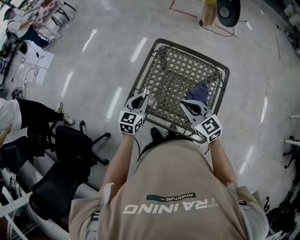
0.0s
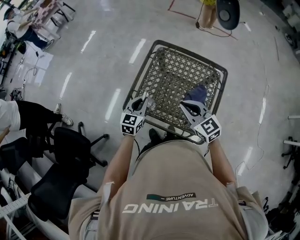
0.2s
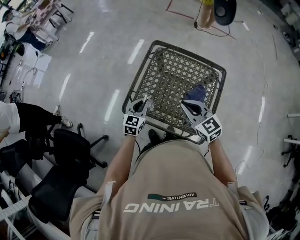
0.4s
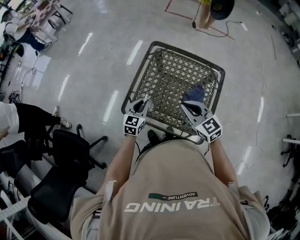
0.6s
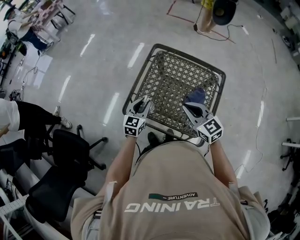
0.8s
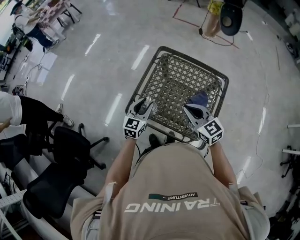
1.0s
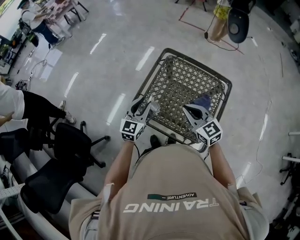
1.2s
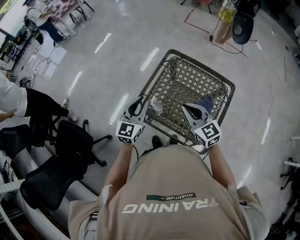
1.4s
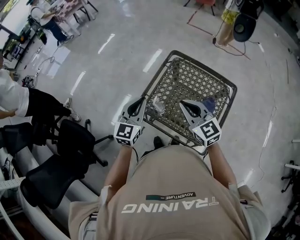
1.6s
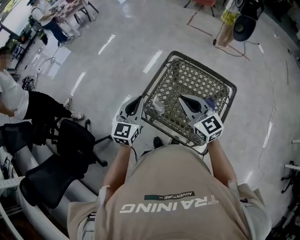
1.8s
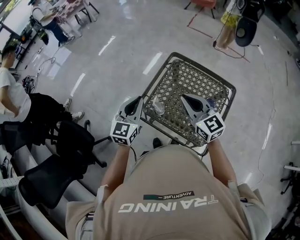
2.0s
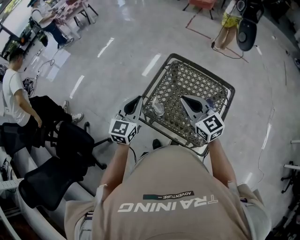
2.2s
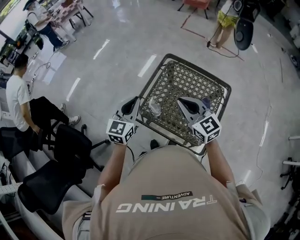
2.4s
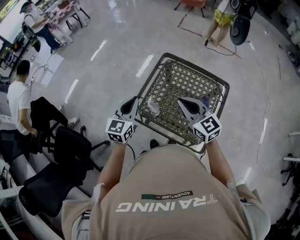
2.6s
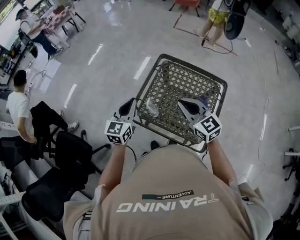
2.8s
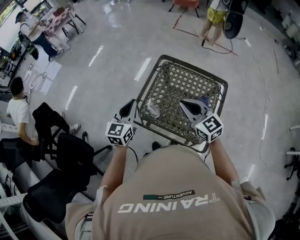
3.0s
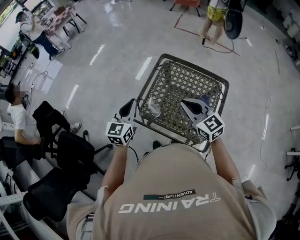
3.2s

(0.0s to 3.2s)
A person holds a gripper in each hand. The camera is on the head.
0.0s - 1.6s: The right gripper travels upward by roughly 5 cm, while the left gripper heads upward, covering approximately 10 cm, and opens and closes again.
1.6s - 3.2s: The grippers make only small movements.

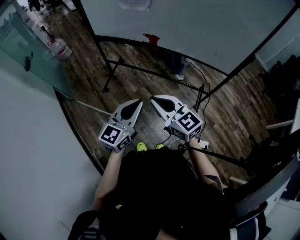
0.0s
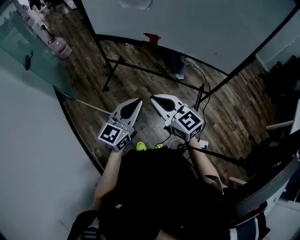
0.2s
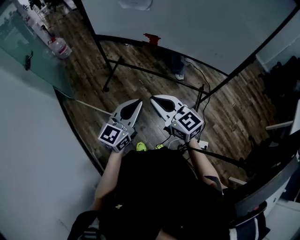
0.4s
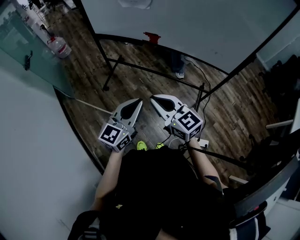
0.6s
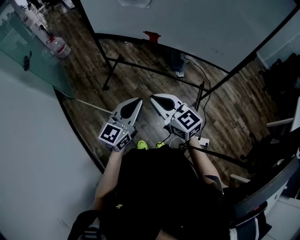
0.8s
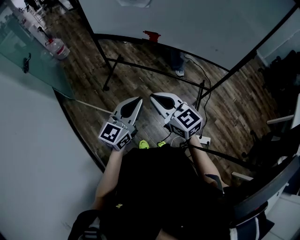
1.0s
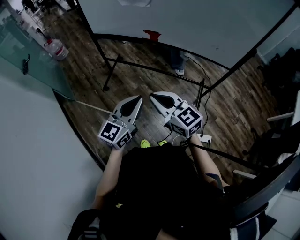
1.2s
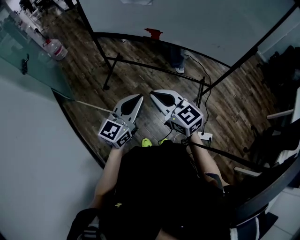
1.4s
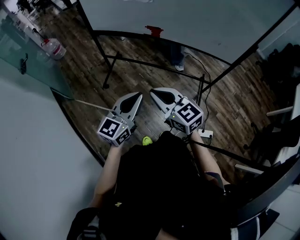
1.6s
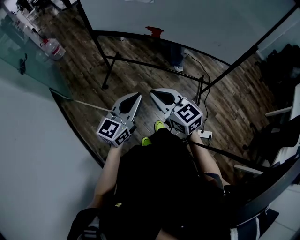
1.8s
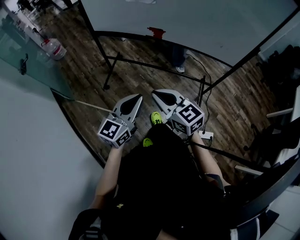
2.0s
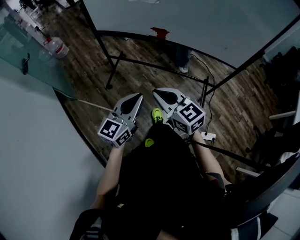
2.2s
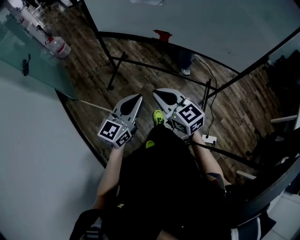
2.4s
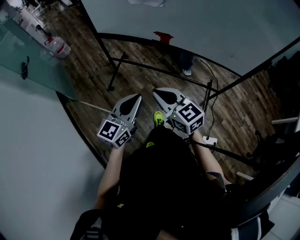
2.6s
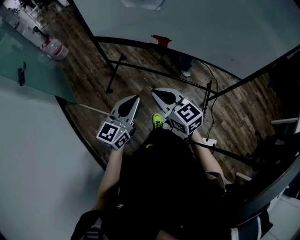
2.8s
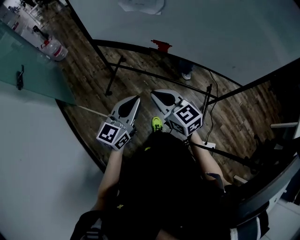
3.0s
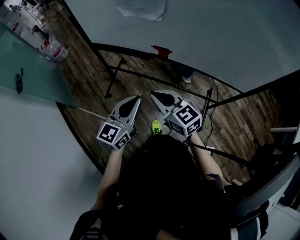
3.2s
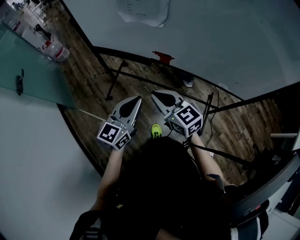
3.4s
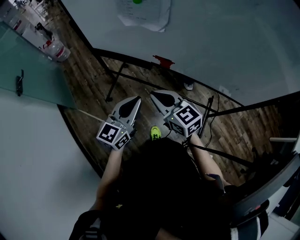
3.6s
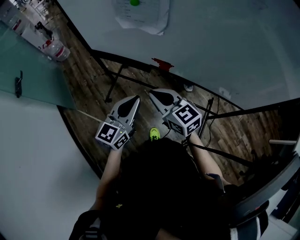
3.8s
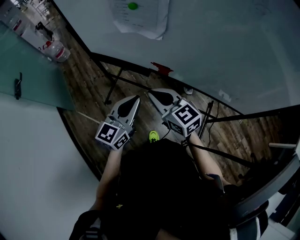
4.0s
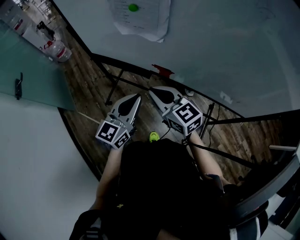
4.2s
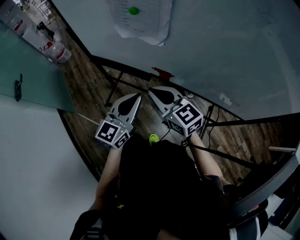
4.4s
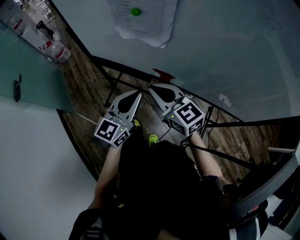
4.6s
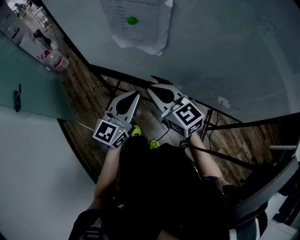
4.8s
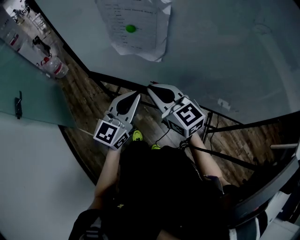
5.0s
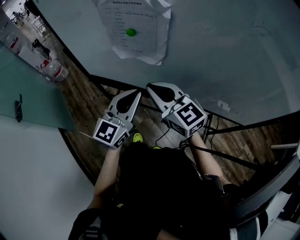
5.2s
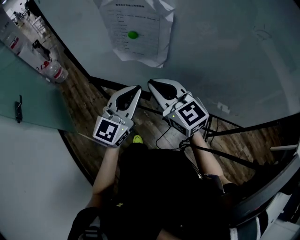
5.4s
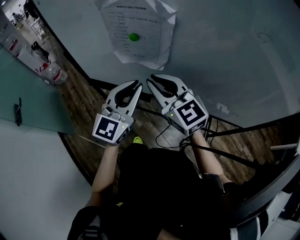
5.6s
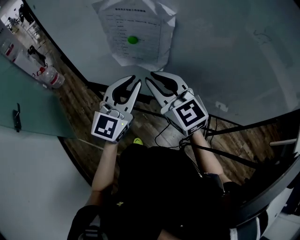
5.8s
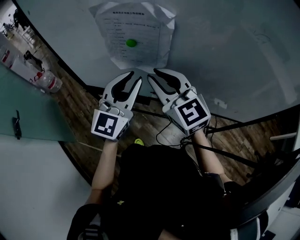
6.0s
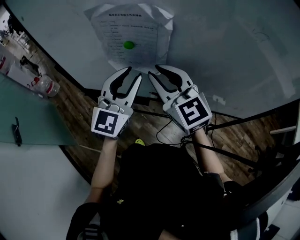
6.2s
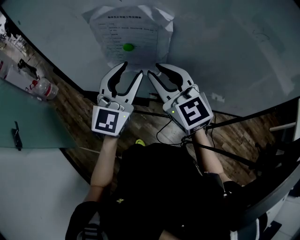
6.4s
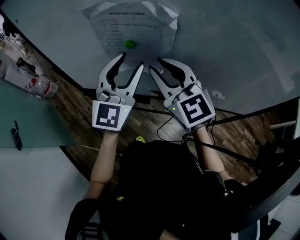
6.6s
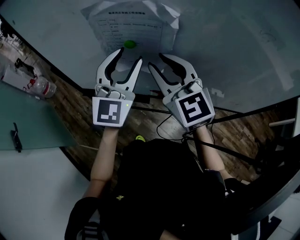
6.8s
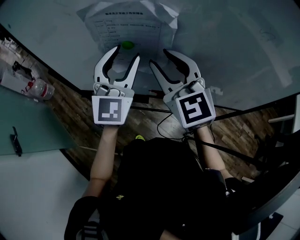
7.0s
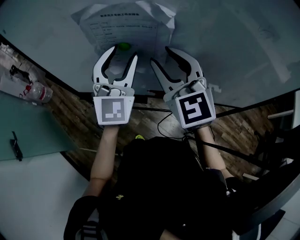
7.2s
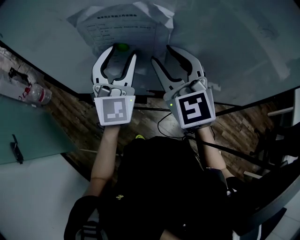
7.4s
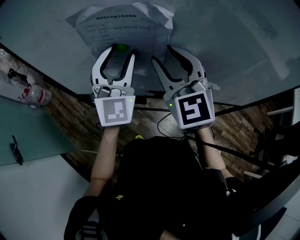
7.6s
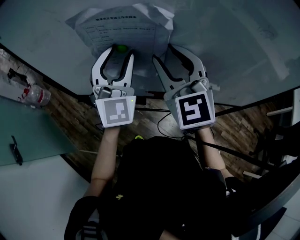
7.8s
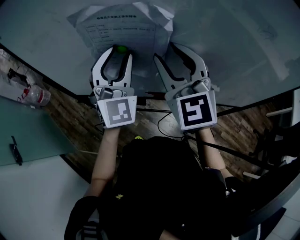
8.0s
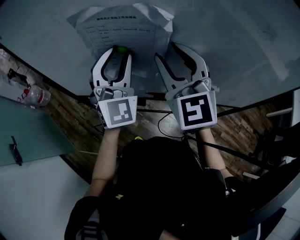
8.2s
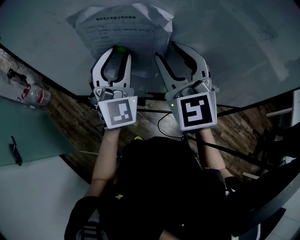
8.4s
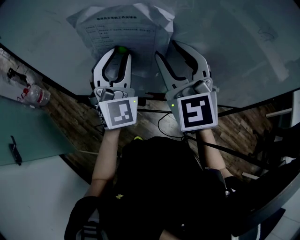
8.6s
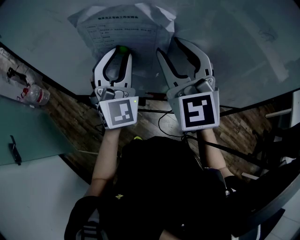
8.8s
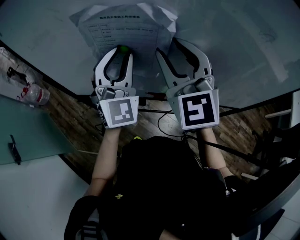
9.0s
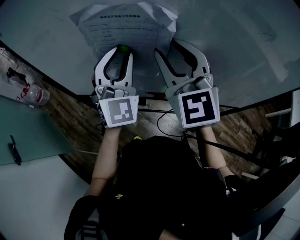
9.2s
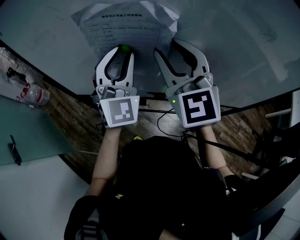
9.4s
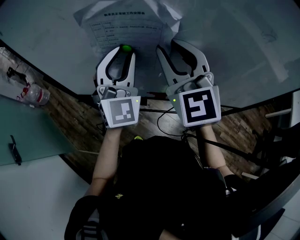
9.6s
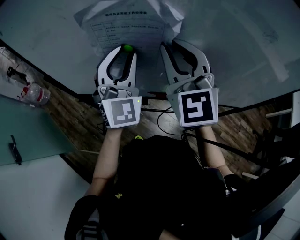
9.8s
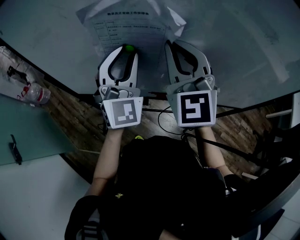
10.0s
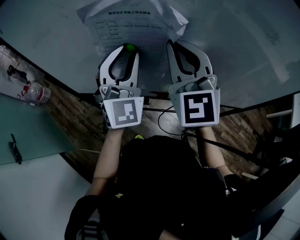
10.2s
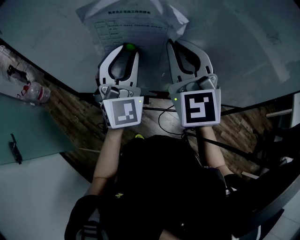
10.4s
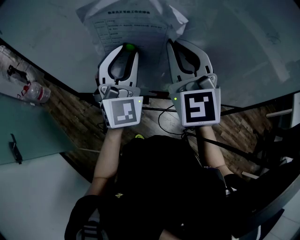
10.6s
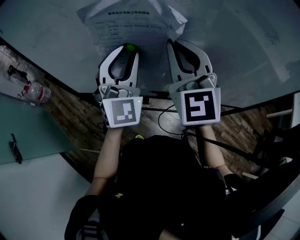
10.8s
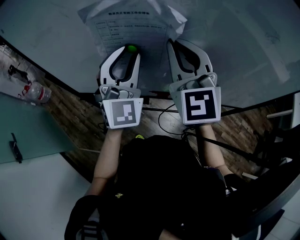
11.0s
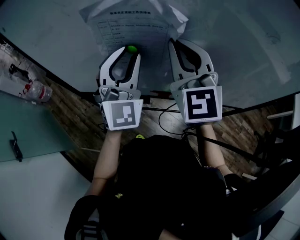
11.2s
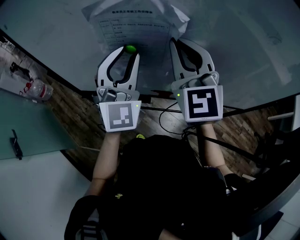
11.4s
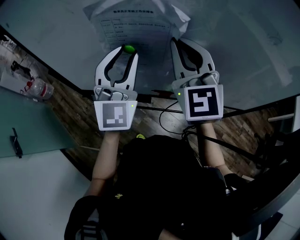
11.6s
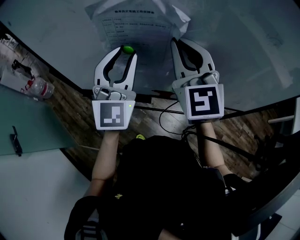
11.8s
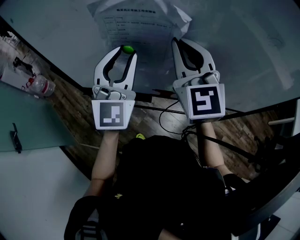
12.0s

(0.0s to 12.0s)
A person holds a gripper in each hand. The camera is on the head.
0.0s - 1.6s: Both grippers move to the left, approximately 5 cm.
1.6s - 3.0s: The two grippers go roughly 15 cm forward.
3.0s - 4.4s: The two grippers go about 15 cm forward.
4.4s - 6.0s: The left gripper travels forward and upward by approximately 20 cm, and turns by approximately 20 degrees; the right gripper heads upward and forward, covering about 15 cm, and rotates roughly 20 degrees.
6.0s - 7.6s: The right gripper heads forward, covering about 5 cm, and turns by roughly 20 degrees. The left gripper shifts approximately 10 cm forward.
7.6s - 9.0s: There are only small adjustments of the grippers.
9.0s - 10.4s: The right gripper closes.
10.4s - 12.0s: The grippers move only a little.

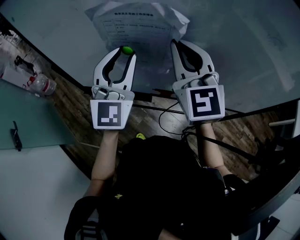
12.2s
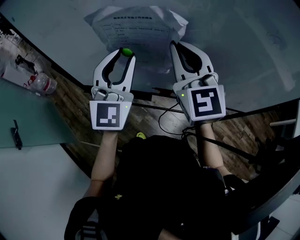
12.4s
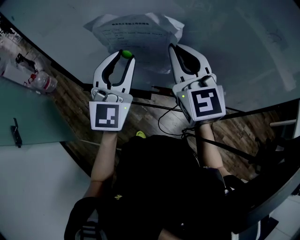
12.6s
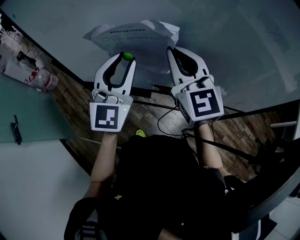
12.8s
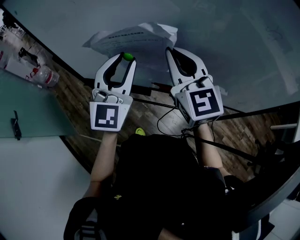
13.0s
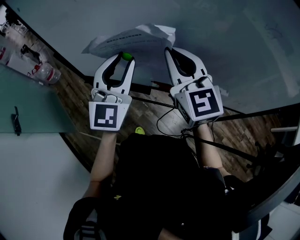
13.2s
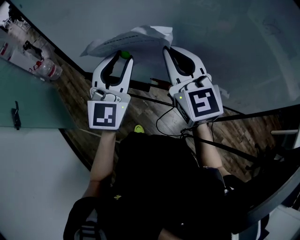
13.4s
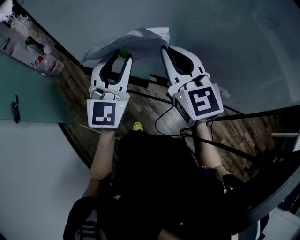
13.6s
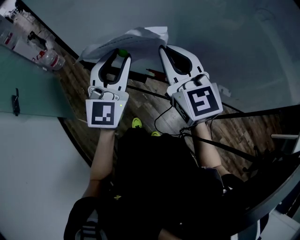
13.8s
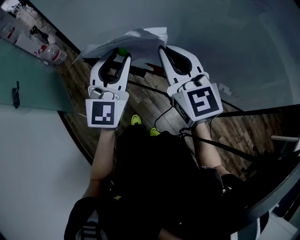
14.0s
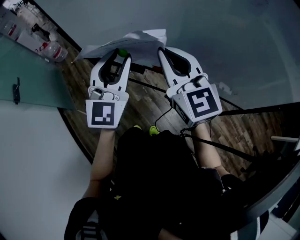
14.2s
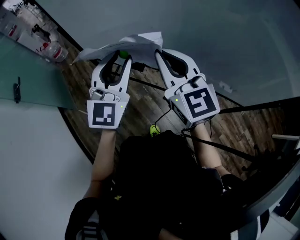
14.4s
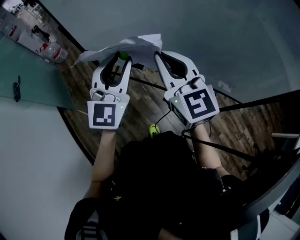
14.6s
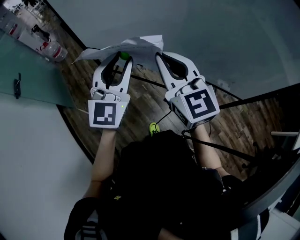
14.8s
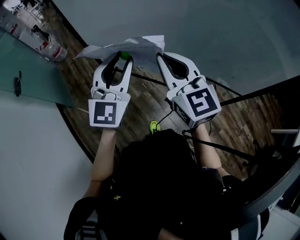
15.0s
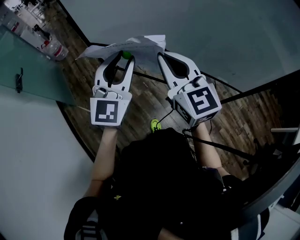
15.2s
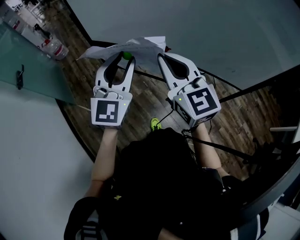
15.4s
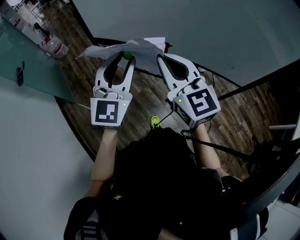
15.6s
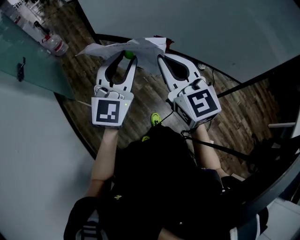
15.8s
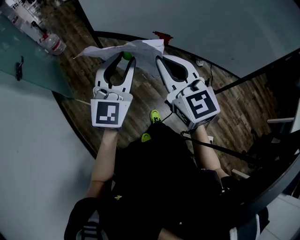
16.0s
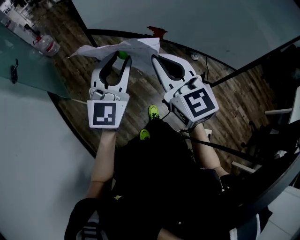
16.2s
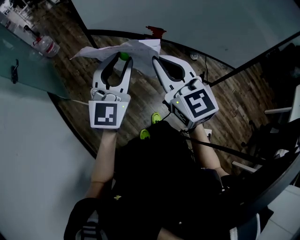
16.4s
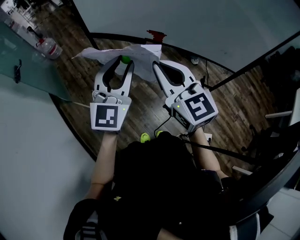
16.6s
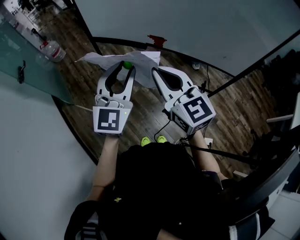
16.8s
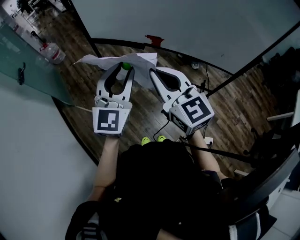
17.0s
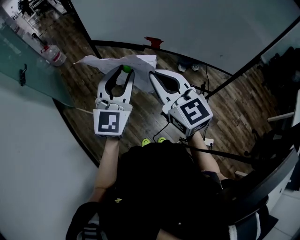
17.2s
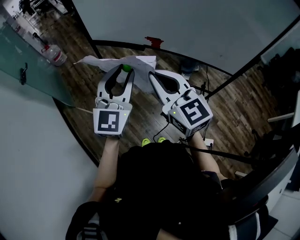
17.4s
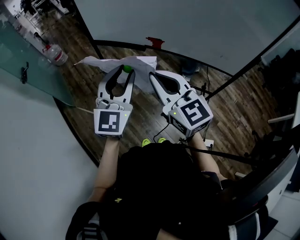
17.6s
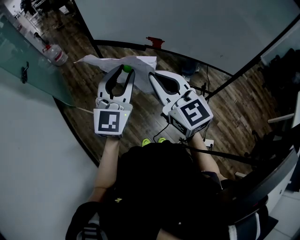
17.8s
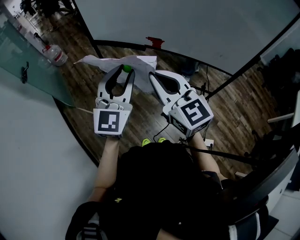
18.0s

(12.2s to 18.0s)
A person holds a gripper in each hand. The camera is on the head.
12.2s - 13.6s: The right gripper is displaced backward and downward by about 10 cm, and rotates approximately 20 degrees, while the left gripper travels backward by roughly 10 cm.
13.6s - 15.0s: The grippers both shift backward by some 15 cm.
15.0s - 16.6s: The two grippers go about 15 cm backward and to the left.
16.6s - 18.0s: The two grippers go about 5 cm backward.

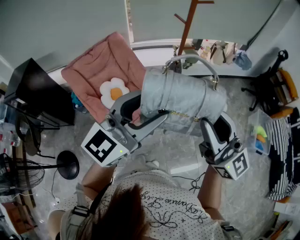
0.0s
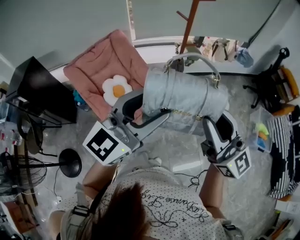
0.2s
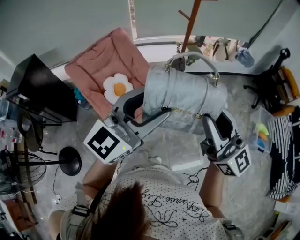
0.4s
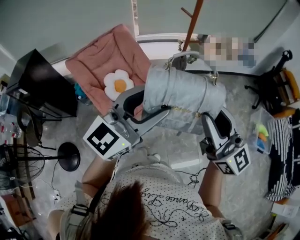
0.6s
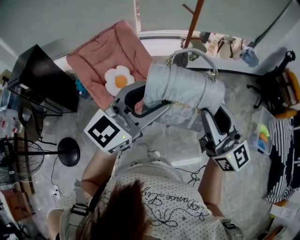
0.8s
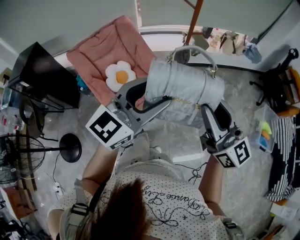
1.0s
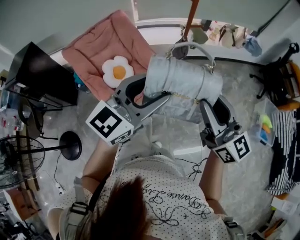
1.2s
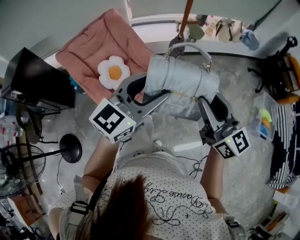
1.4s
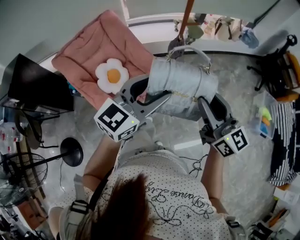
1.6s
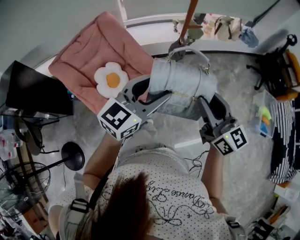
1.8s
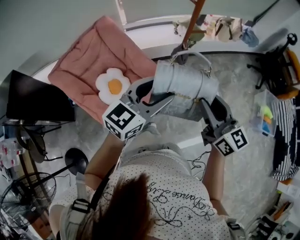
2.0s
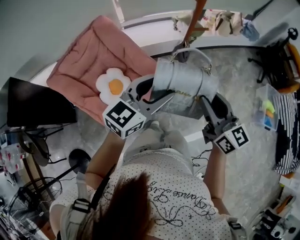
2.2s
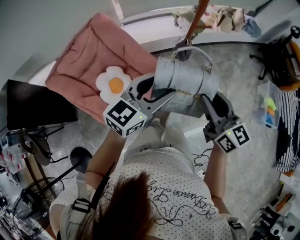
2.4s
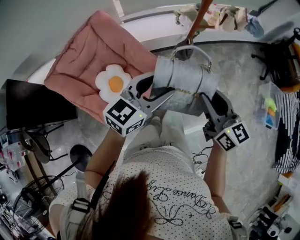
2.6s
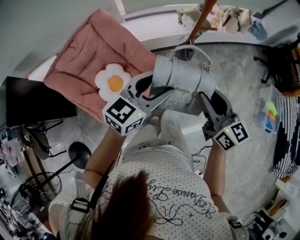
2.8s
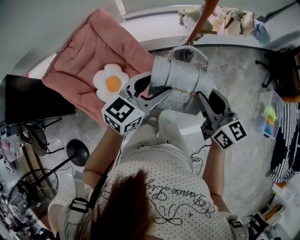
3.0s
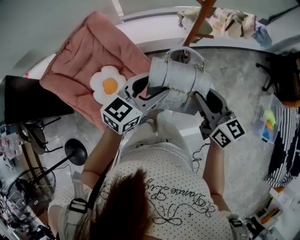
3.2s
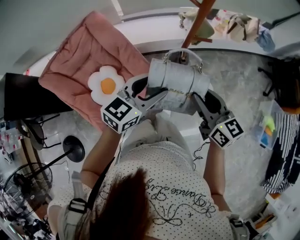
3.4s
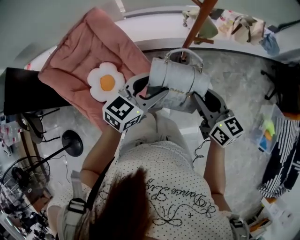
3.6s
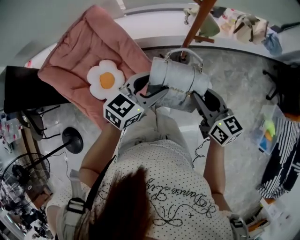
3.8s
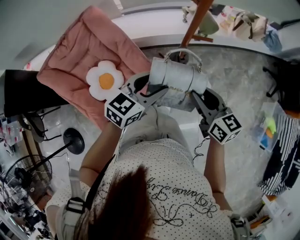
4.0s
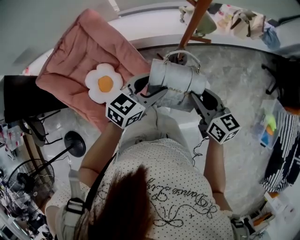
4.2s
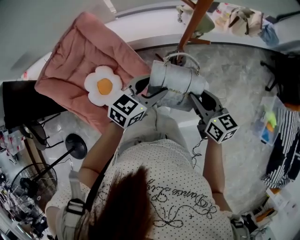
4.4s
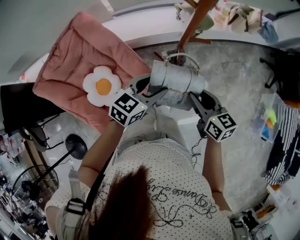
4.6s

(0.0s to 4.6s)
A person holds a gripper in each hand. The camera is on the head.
0.0s - 1.6s: Both grippers move downward and forward, approximately 15 cm. The right gripper rotates about 20 degrees.
1.6s - 3.0s: Both grippers travel together forward and downward, roughly 20 cm.
3.0s - 4.6s: Both grippers travel together downward, forward and to the right, some 15 cm.
